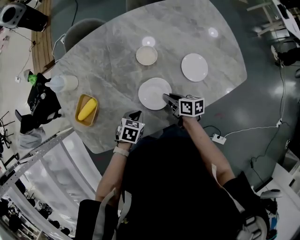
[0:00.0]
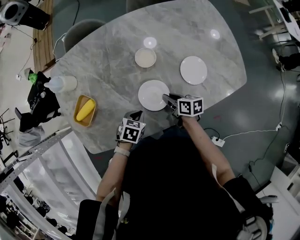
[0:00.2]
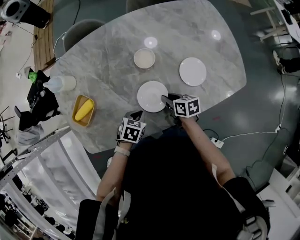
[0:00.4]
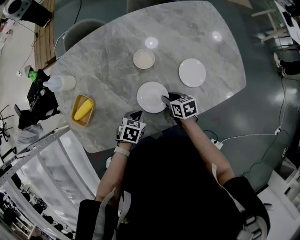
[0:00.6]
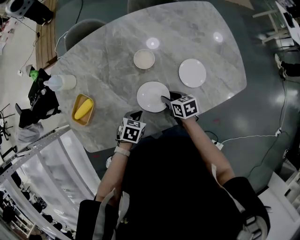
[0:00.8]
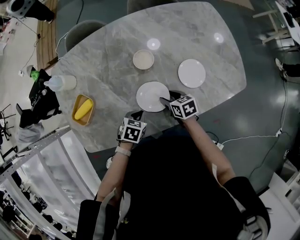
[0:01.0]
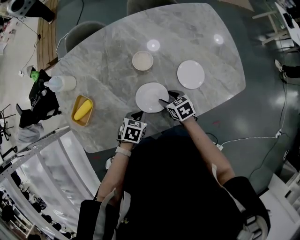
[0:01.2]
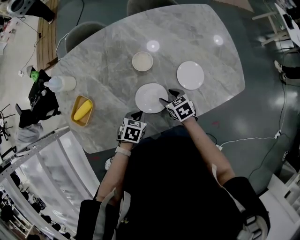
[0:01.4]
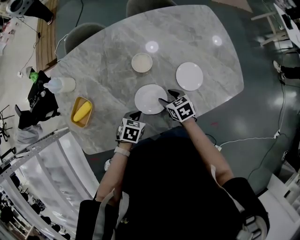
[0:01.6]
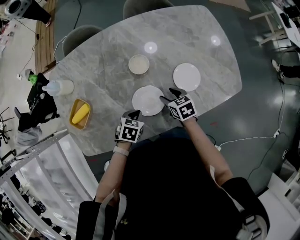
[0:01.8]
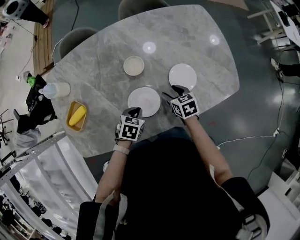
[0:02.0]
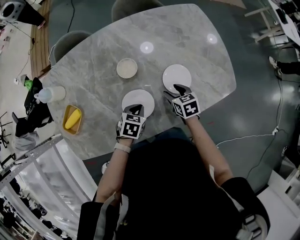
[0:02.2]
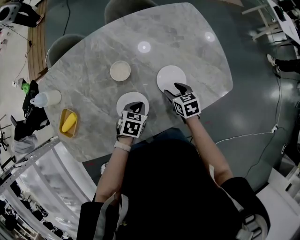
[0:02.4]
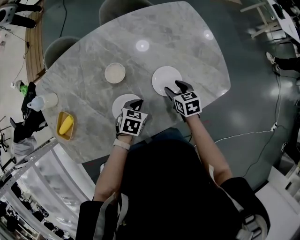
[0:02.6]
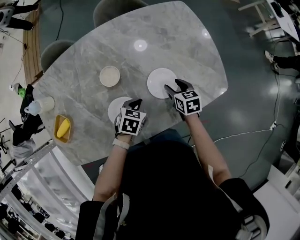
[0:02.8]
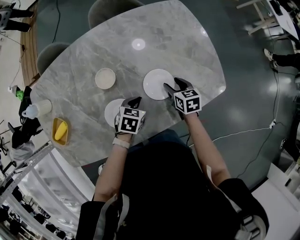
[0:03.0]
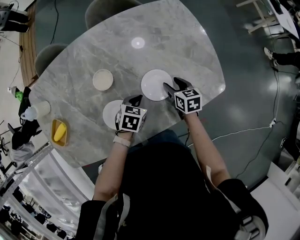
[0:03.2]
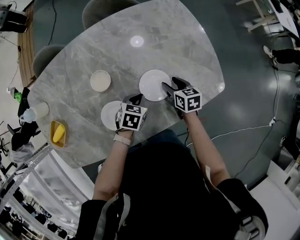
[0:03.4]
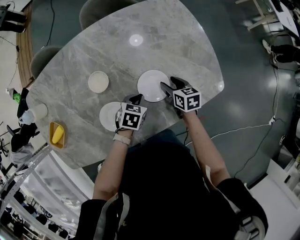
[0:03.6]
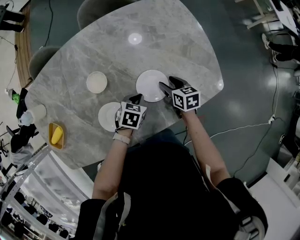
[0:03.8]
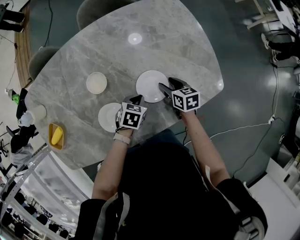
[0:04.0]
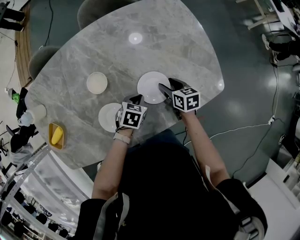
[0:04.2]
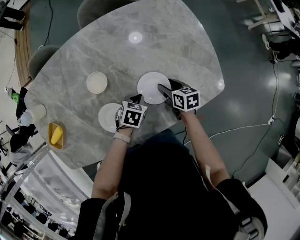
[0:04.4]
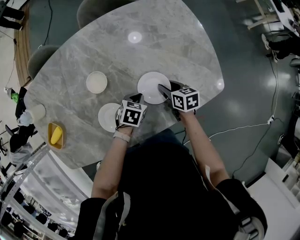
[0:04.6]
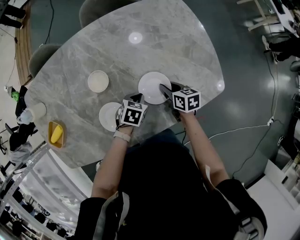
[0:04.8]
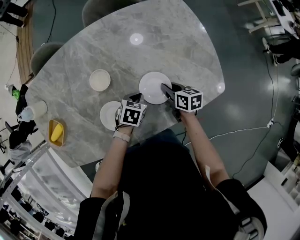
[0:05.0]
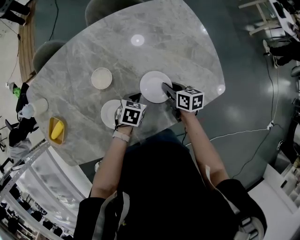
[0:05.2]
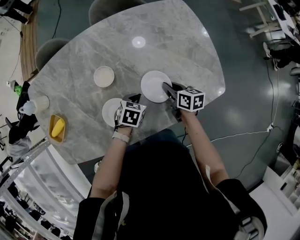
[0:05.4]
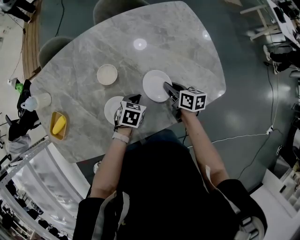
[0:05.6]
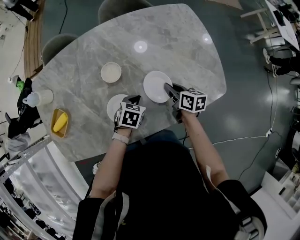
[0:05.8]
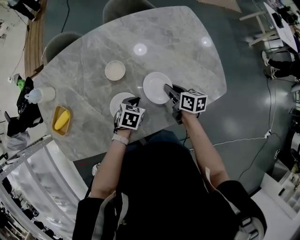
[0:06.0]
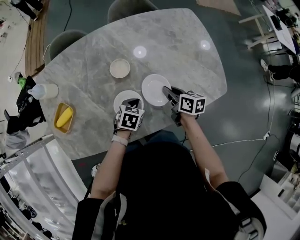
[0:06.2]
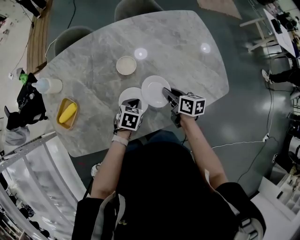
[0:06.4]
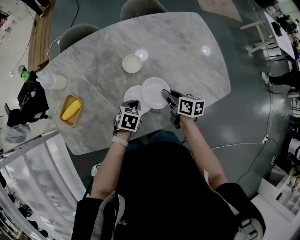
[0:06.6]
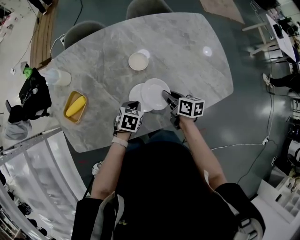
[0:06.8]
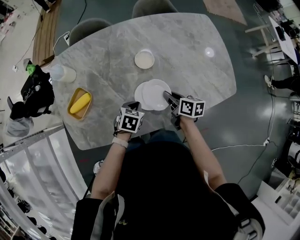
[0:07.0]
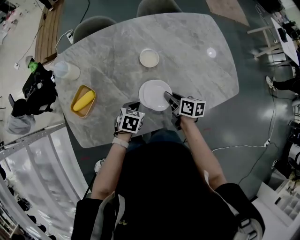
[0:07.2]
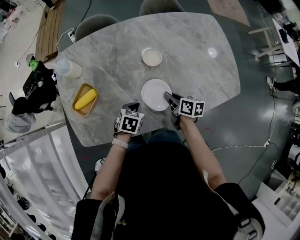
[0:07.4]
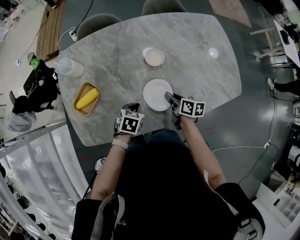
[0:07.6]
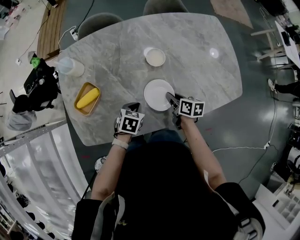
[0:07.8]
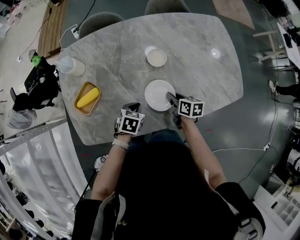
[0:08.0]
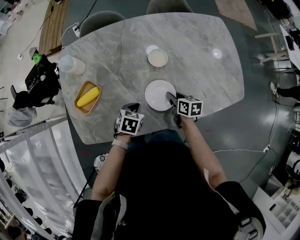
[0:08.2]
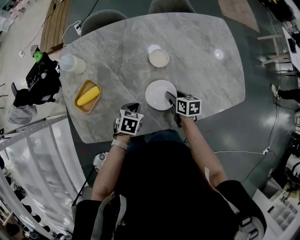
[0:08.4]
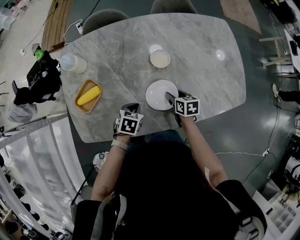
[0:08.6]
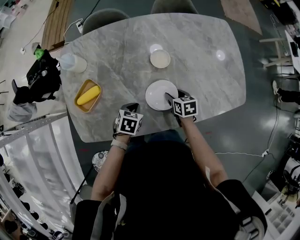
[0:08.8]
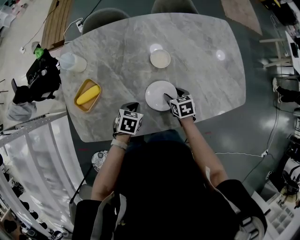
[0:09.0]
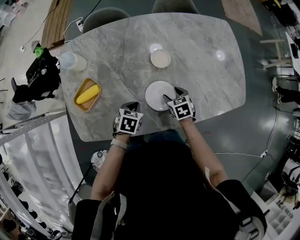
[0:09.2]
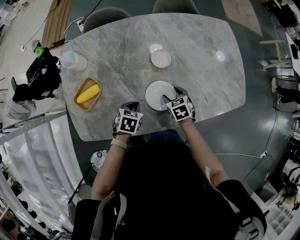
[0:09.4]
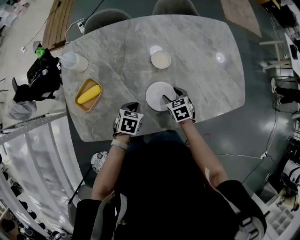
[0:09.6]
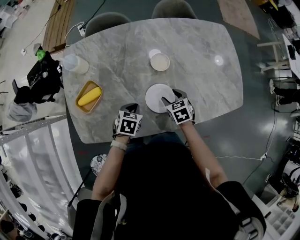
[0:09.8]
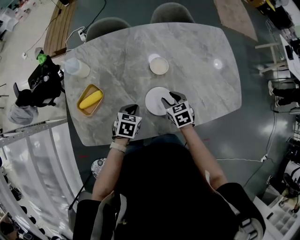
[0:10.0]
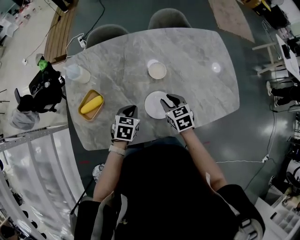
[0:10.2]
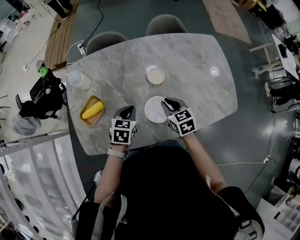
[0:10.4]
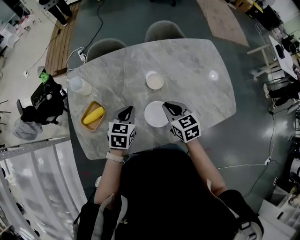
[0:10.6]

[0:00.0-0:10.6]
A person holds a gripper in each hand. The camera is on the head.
0:00.0 to 0:01.6: The right gripper changes its angle by about 40 degrees, and opens up, while the left gripper ends up roughly 5 cm from where it was.
0:01.6 to 0:03.0: The grippers both shift to the right and forward by about 20 cm. The right gripper rotates about 20 degrees.
0:03.0 to 0:04.6: The left gripper moves approximately 5 cm.
0:04.6 to 0:06.0: The left gripper shifts about 10 cm to the left and backward; the right gripper is displaced upward and to the left by approximately 10 cm, and closes up.
0:06.0 to 0:07.6: The grippers both shift to the left and backward by about 20 cm.
0:07.6 to 0:09.0: The right gripper changes its angle by about 40 degrees, and opens up.
0:09.0 to 0:10.6: Both grippers move upward, some 20 cm. The right gripper swivels about 20 degrees, and closes up. Meanwhile the left gripper rotates roughly 20 degrees.

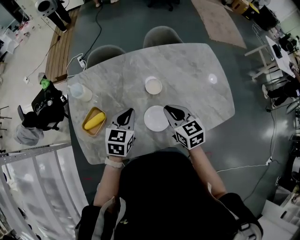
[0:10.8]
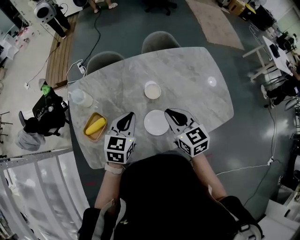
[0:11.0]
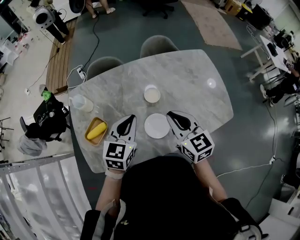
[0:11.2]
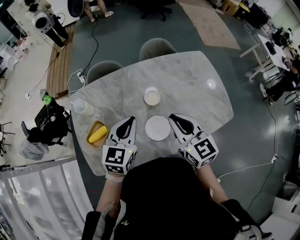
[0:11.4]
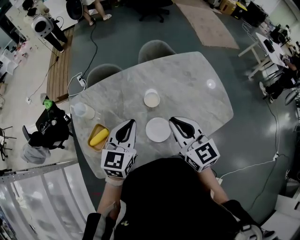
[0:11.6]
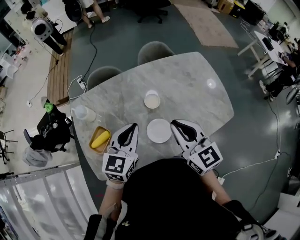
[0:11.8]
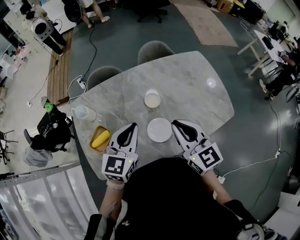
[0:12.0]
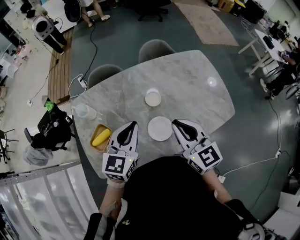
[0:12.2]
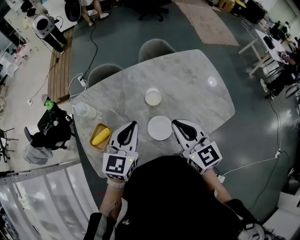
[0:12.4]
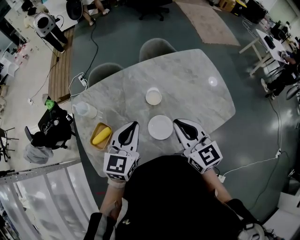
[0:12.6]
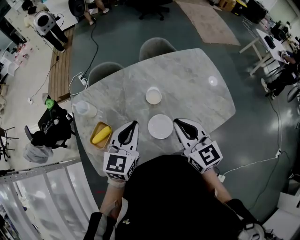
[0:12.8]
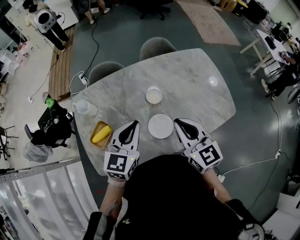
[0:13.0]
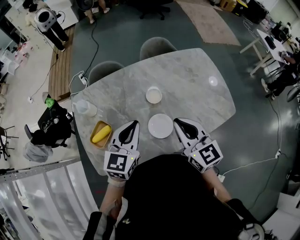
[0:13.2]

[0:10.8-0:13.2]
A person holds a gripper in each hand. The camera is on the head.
0:10.8 to 0:12.0: Both grippers move upward, approximately 15 cm. The right gripper turns by some 20 degrees.
0:12.0 to 0:13.2: The grippers move only a little.

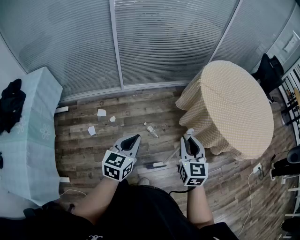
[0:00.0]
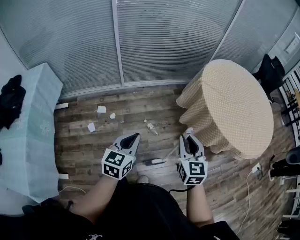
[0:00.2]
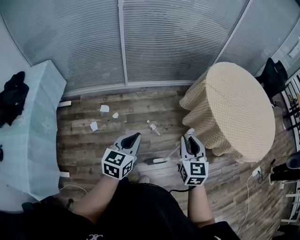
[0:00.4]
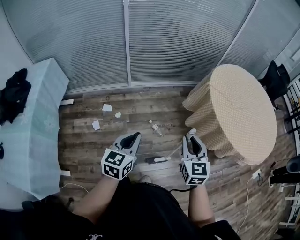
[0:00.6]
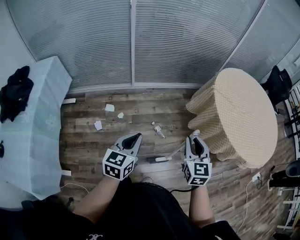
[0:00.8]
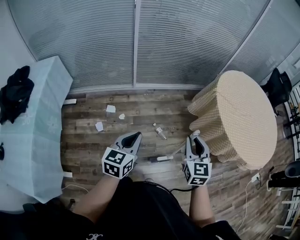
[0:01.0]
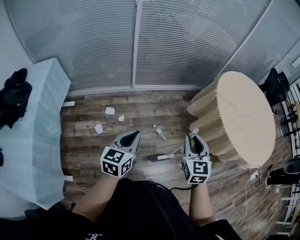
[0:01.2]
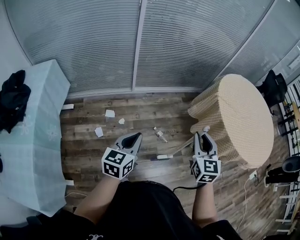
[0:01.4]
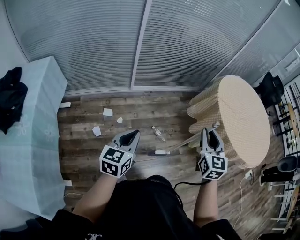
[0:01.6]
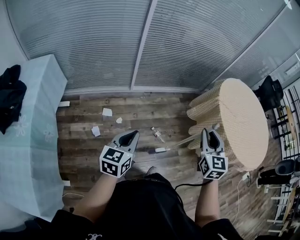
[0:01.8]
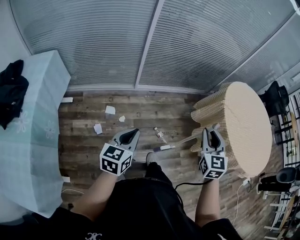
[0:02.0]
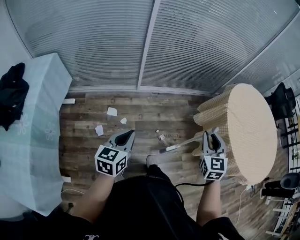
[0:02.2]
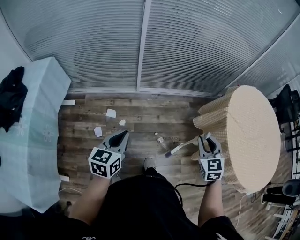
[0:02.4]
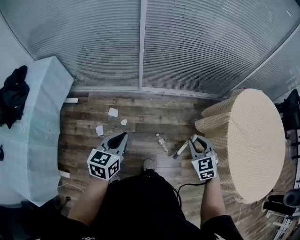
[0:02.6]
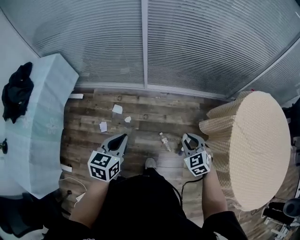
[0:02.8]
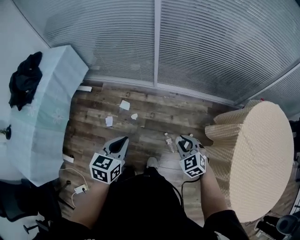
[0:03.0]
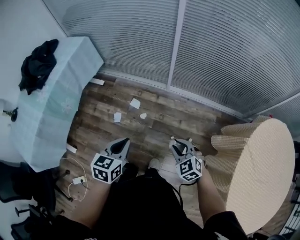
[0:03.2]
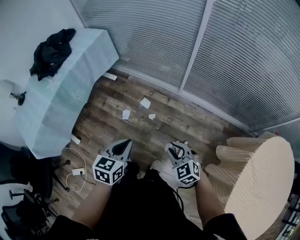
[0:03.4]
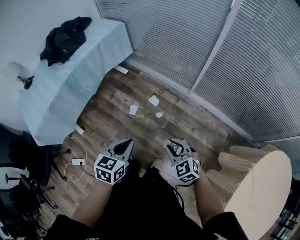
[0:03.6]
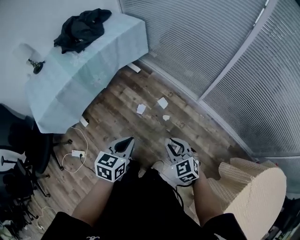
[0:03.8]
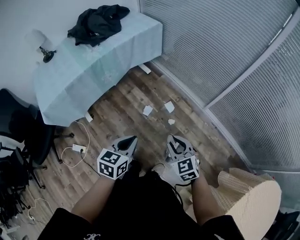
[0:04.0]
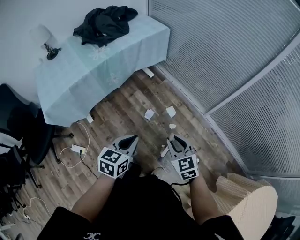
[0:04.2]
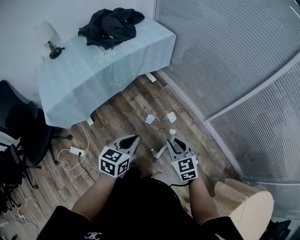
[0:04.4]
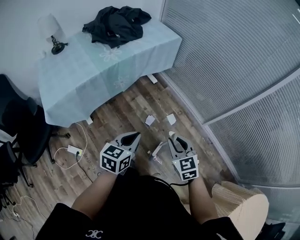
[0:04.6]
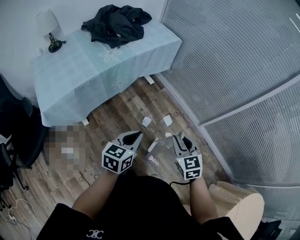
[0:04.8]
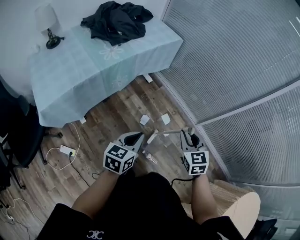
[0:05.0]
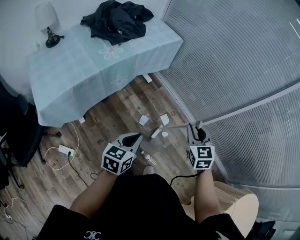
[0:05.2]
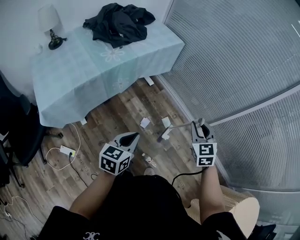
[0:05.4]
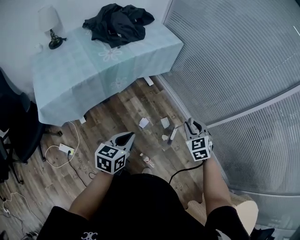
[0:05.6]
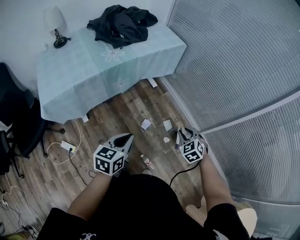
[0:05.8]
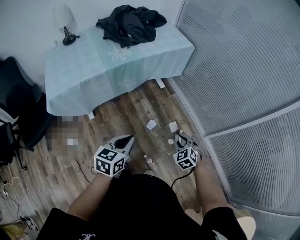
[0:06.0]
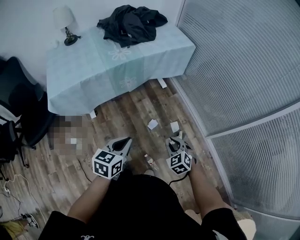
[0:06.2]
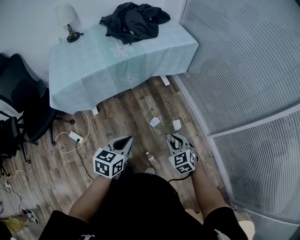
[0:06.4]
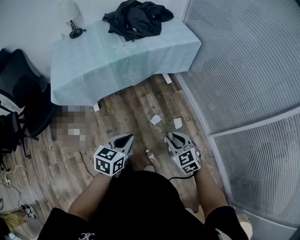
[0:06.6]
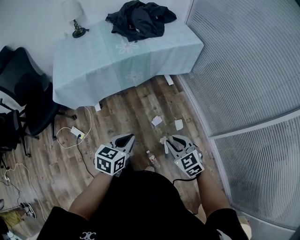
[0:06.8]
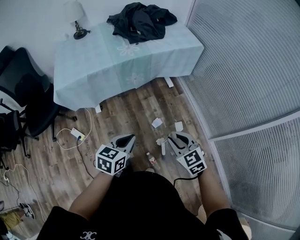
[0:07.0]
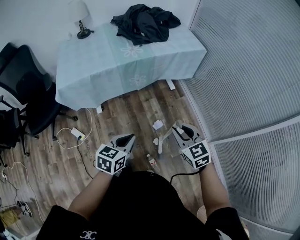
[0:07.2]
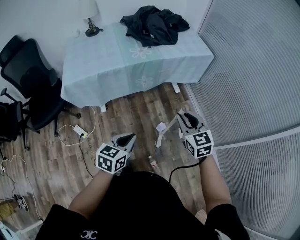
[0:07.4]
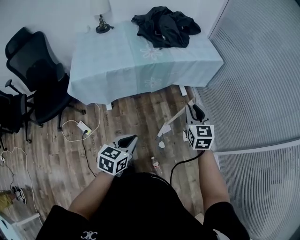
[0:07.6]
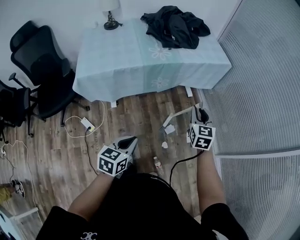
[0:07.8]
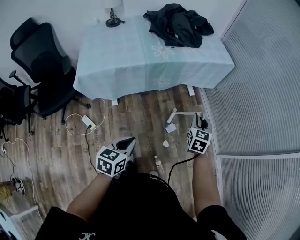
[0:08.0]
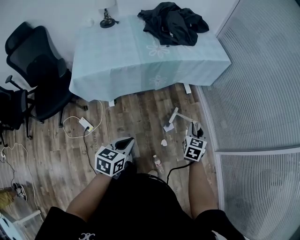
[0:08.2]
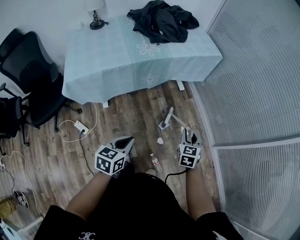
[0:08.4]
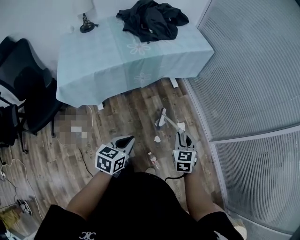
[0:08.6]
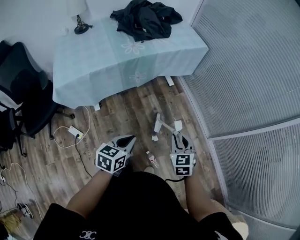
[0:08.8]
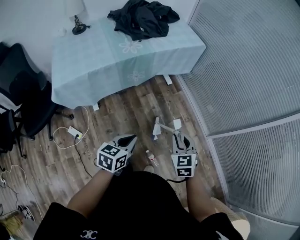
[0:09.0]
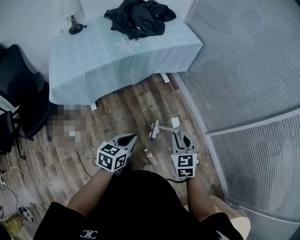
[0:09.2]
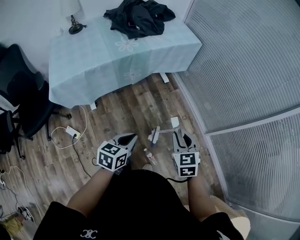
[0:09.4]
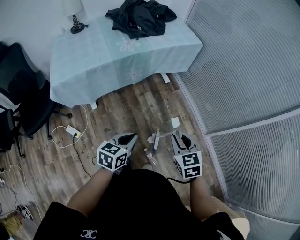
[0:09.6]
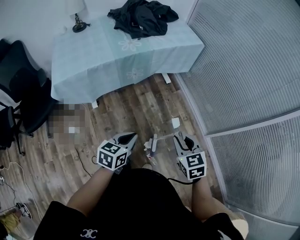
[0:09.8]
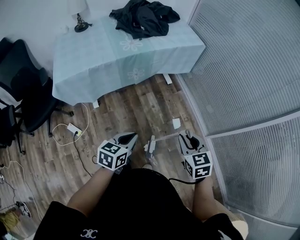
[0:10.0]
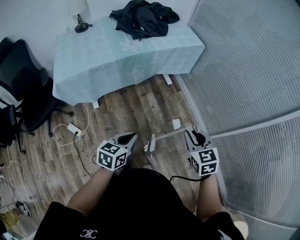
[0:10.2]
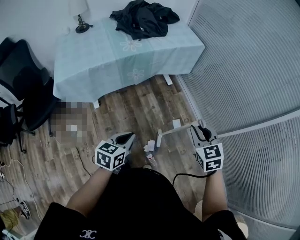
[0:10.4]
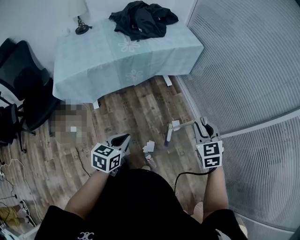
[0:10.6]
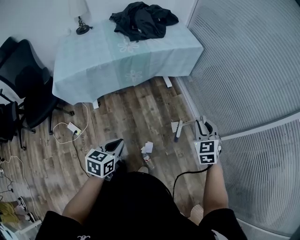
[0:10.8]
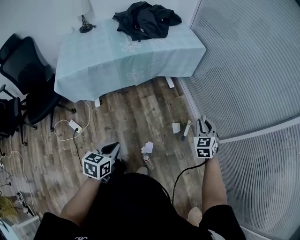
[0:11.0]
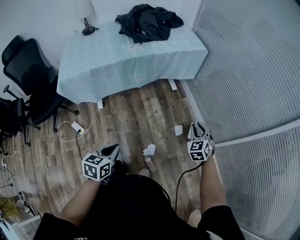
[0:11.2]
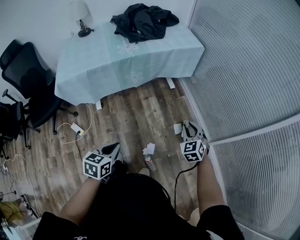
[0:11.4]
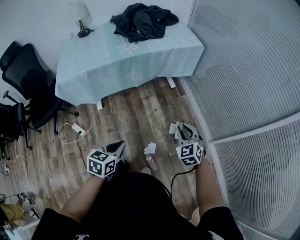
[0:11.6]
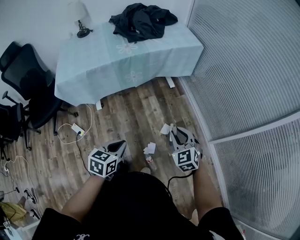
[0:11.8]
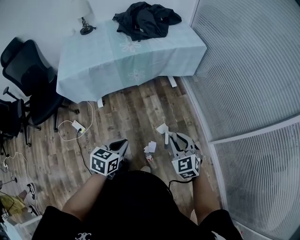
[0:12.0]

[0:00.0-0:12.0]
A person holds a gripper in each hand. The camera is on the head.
0:00.0 to 0:01.6: The right gripper moves to the left and forward, approximately 15 cm. The left gripper is displaced to the left by approximately 25 cm.
0:01.6 to 0:03.0: The right gripper goes some 25 cm downward, and changes its angle by about 60 degrees, while the left gripper shifts by roughly 15 cm, and swivels approximately 30 degrees.
0:03.0 to 0:04.4: The left gripper changes place by about 30 cm, and rotates some 30 degrees. Meanwhile the right gripper ends up roughly 40 cm from where it was, and rotates roughly 30 degrees.
0:04.4 to 0:06.0: The right gripper goes some 15 cm forward and downward, and rotates roughly 30 degrees.
0:06.0 to 0:07.6: The right gripper travels upward, forward and to the left by roughly 25 cm, and turns by approximately 40 degrees, while the left gripper travels to the left by some 5 cm.
0:07.6 to 0:09.0: The right gripper shifts some 20 cm backward, downward and to the right.
0:09.0 to 0:10.4: The right gripper travels upward and to the right by some 10 cm.
0:10.4 to 0:12.0: The left gripper moves some 5 cm. Meanwhile the right gripper heads downward, covering approximately 10 cm.
